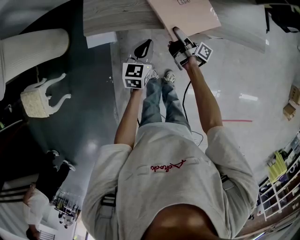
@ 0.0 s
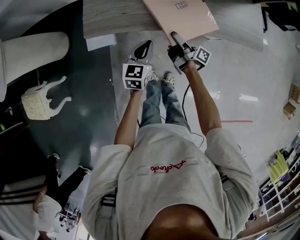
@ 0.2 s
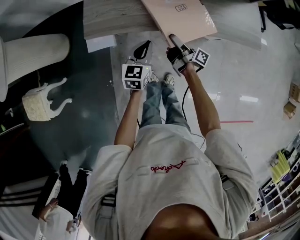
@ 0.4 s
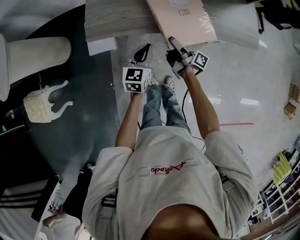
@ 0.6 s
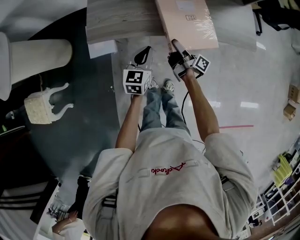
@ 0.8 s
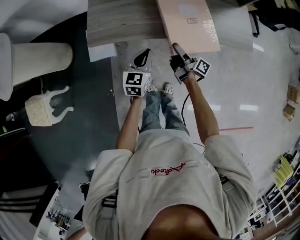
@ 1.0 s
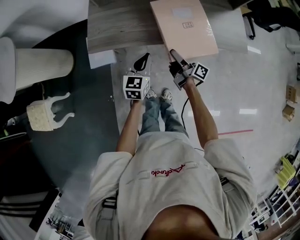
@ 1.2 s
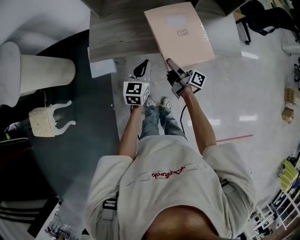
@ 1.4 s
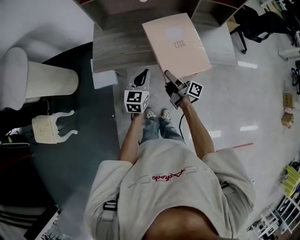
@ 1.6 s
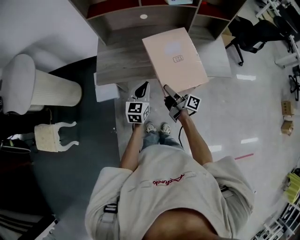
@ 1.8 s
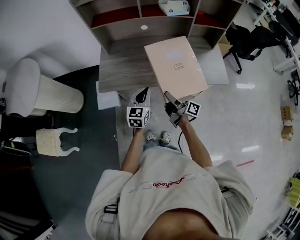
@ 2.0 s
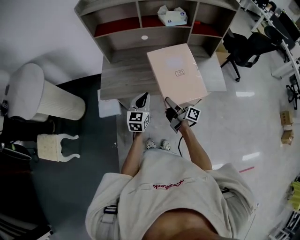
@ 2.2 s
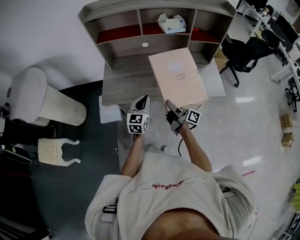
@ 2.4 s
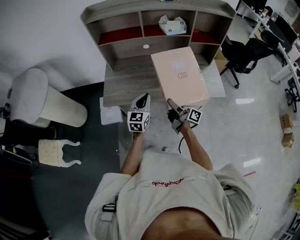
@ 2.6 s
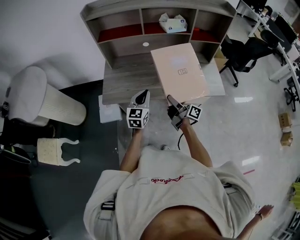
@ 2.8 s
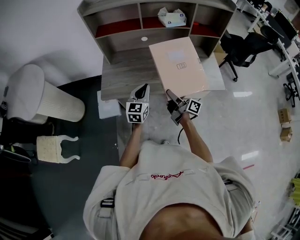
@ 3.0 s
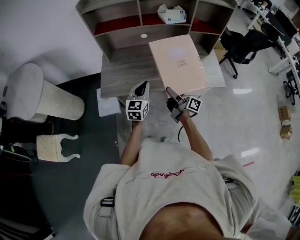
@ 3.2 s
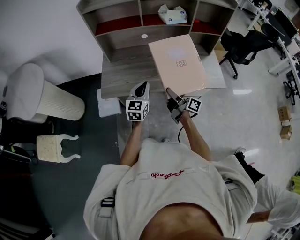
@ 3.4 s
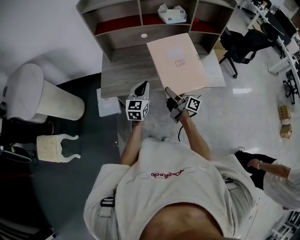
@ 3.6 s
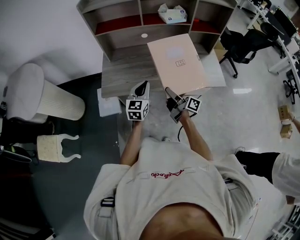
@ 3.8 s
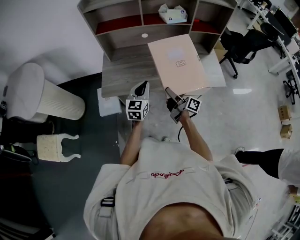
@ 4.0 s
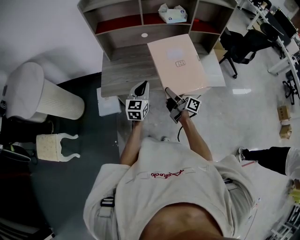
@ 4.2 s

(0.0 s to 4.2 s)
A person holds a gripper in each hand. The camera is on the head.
0.0 s - 1.4 s: The right gripper goes about 15 cm upward and backward. The left gripper heads upward, covering approximately 10 cm.
1.4 s - 2.8 s: The grippers both shift upward by about 10 cm.
2.8 s - 4.2 s: The grippers make only small movements.

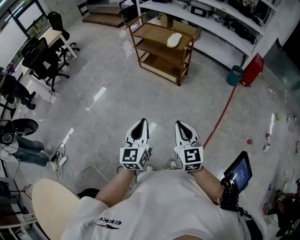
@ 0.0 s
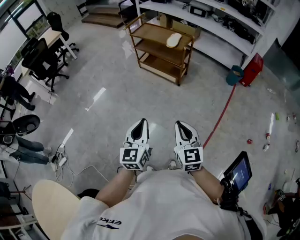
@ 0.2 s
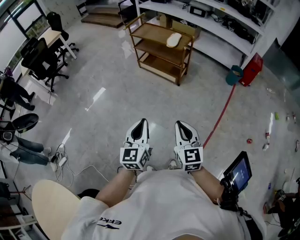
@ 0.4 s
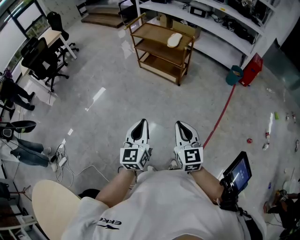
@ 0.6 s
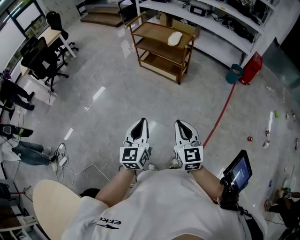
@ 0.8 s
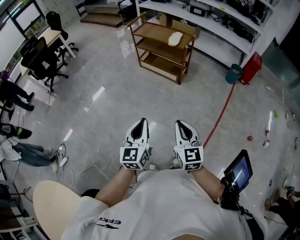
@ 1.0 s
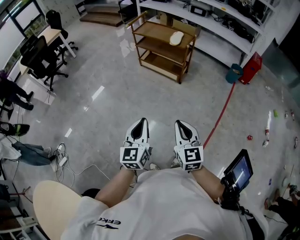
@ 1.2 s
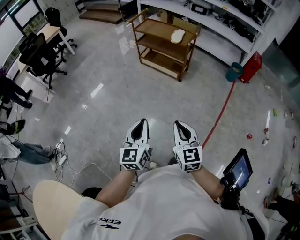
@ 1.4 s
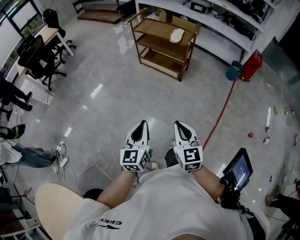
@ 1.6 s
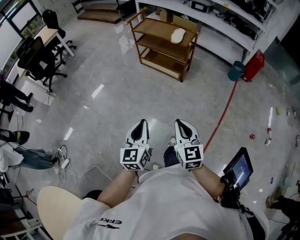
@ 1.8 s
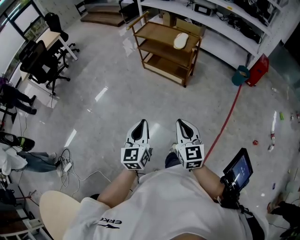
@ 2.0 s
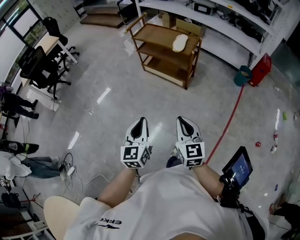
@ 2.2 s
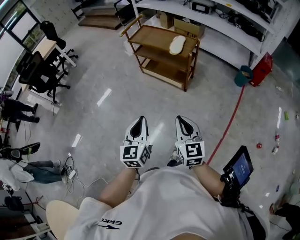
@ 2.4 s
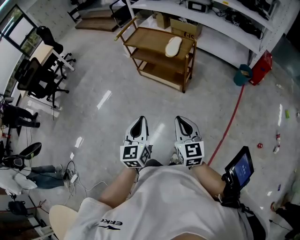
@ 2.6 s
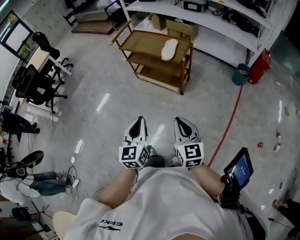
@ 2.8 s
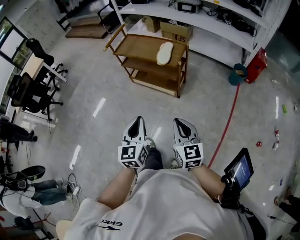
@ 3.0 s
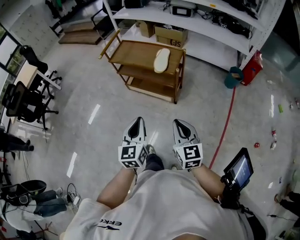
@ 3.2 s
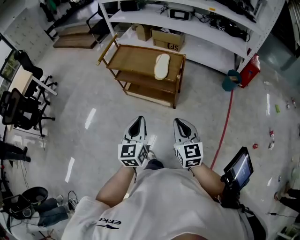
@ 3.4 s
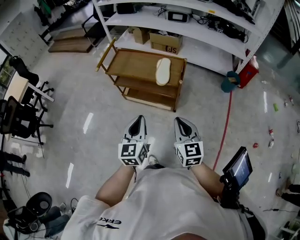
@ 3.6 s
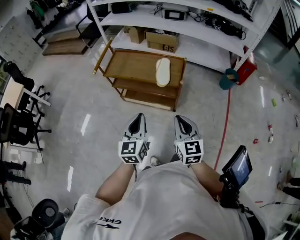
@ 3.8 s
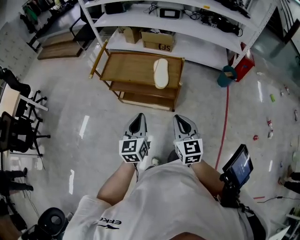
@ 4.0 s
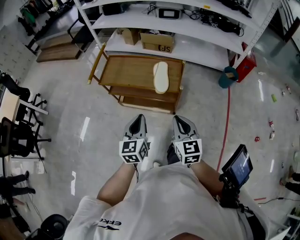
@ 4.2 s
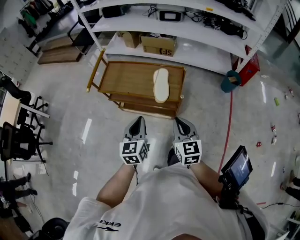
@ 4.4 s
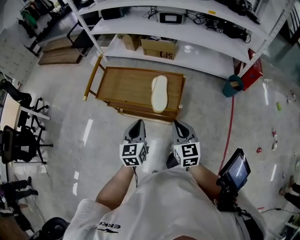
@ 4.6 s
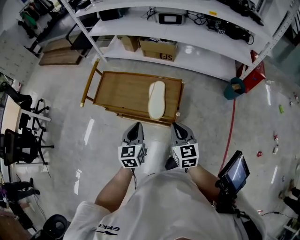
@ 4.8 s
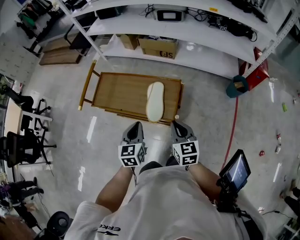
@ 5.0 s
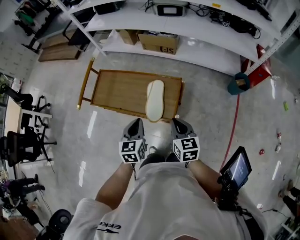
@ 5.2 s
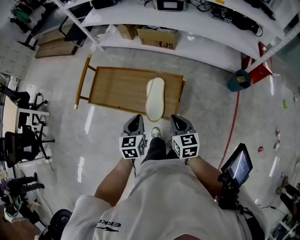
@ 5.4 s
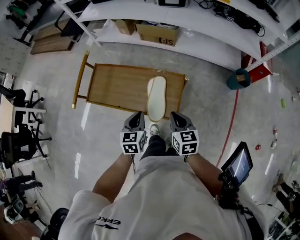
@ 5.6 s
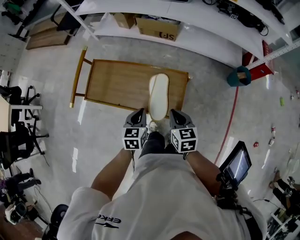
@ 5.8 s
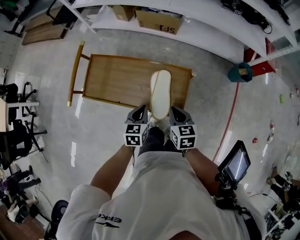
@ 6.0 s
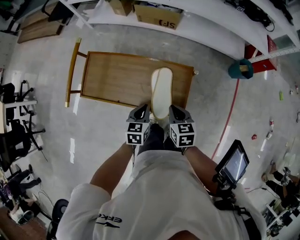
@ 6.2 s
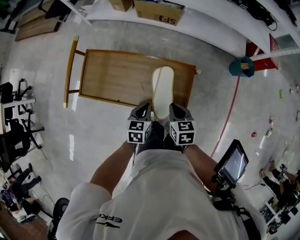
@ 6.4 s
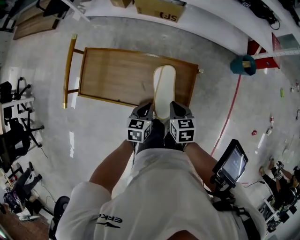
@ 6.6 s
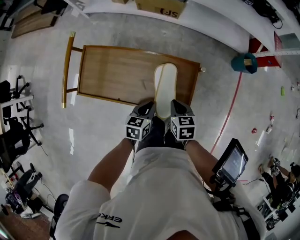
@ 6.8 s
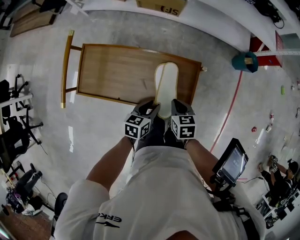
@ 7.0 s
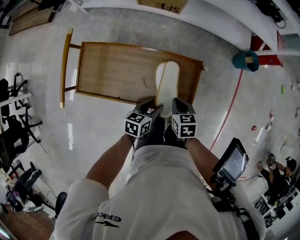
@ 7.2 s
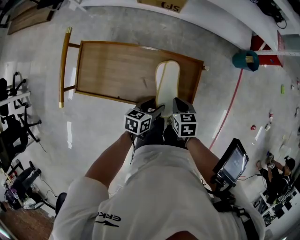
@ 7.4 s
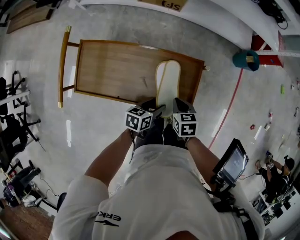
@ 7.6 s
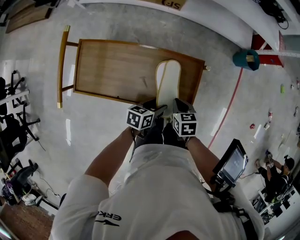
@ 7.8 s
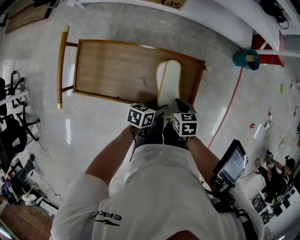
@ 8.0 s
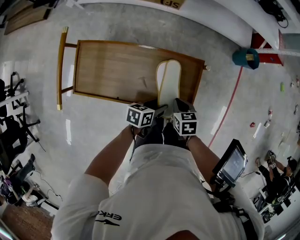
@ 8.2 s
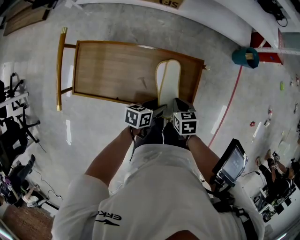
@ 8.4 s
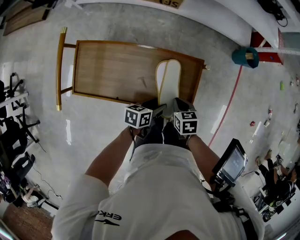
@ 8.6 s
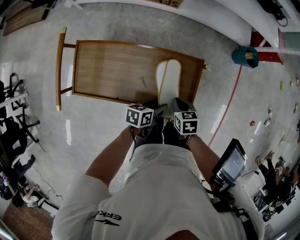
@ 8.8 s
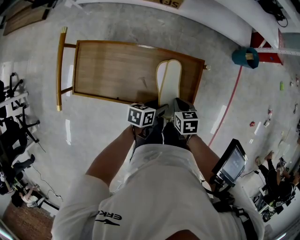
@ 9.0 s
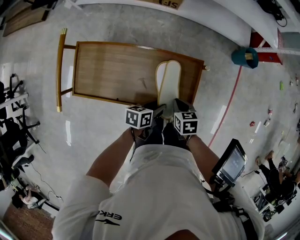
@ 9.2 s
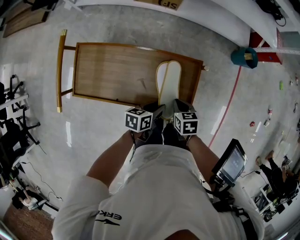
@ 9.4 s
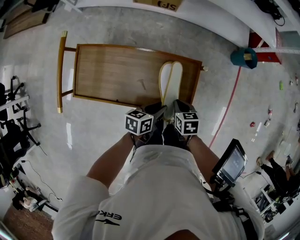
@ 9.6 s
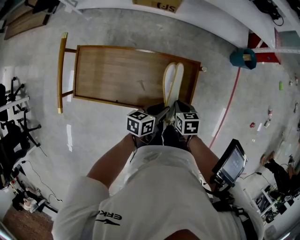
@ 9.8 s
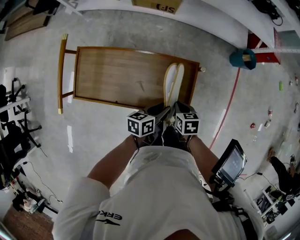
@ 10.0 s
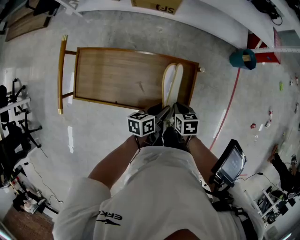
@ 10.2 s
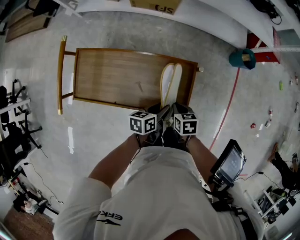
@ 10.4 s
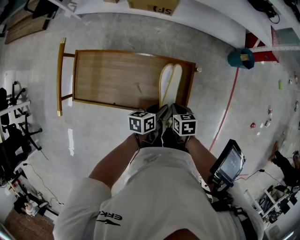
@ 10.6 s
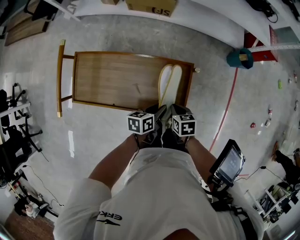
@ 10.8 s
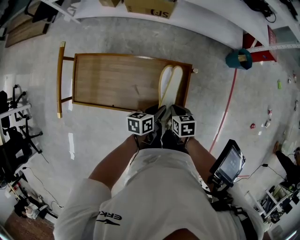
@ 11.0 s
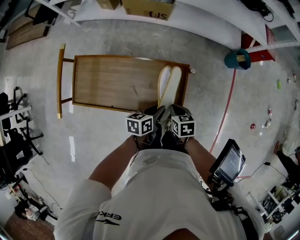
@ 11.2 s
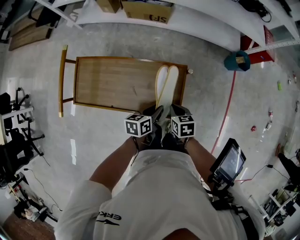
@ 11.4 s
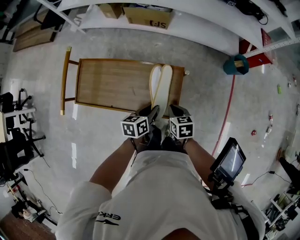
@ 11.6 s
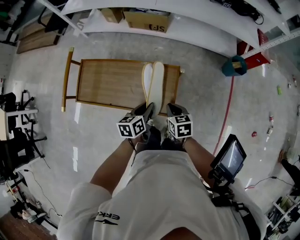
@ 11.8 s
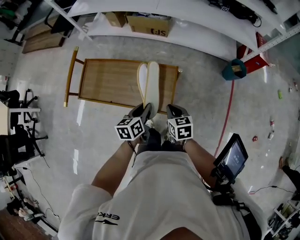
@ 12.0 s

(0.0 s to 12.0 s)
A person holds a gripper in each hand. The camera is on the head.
0.0 s - 1.6 s: Both grippers travel together to the left, approximately 10 cm.
1.6 s - 3.0 s: The grippers both shift forward by about 30 cm.
3.0 s - 4.4 s: The two grippers go about 35 cm forward.
4.4 s - 6.0 s: Both grippers move forward and downward, about 30 cm. The left gripper rotates roughly 20 degrees, while the right gripper swivels approximately 30 degrees.
6.0 s - 7.6 s: Both grippers move downward, approximately 10 cm. The left gripper swivels some 40 degrees, and opens.
7.6 s - 9.0 s: There are only small adjustments of the grippers.
9.0 s - 10.4 s: The left gripper closes.
10.4 s - 12.0 s: The two grippers go some 10 cm upward. The left gripper swivels about 30 degrees. The right gripper changes its angle by about 20 degrees.

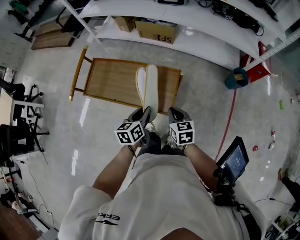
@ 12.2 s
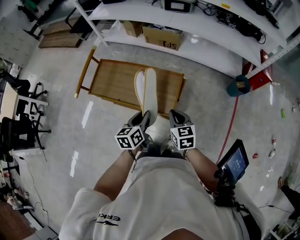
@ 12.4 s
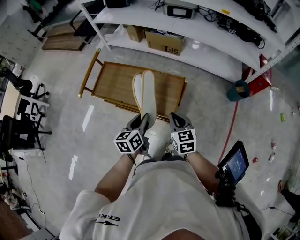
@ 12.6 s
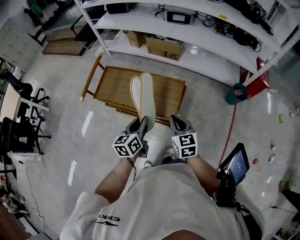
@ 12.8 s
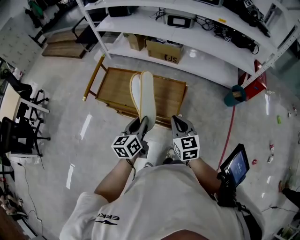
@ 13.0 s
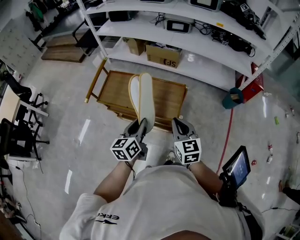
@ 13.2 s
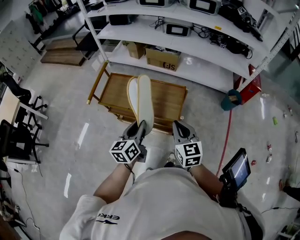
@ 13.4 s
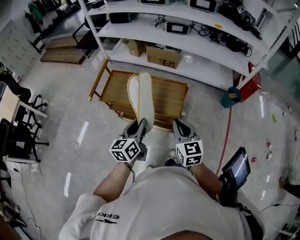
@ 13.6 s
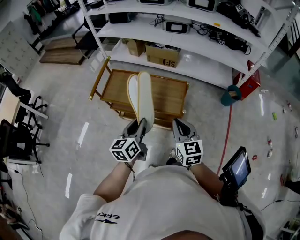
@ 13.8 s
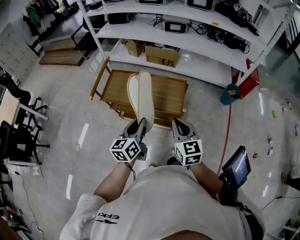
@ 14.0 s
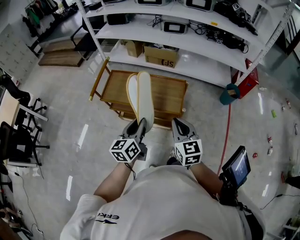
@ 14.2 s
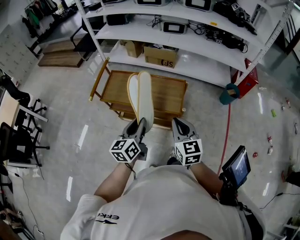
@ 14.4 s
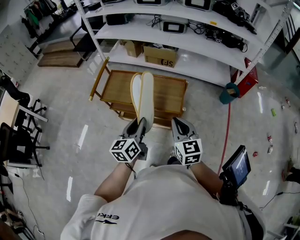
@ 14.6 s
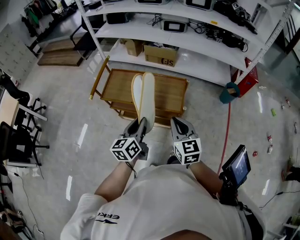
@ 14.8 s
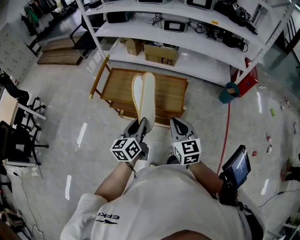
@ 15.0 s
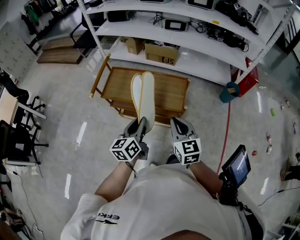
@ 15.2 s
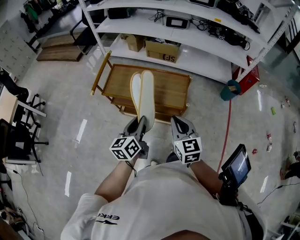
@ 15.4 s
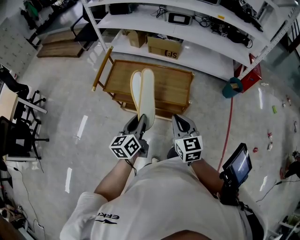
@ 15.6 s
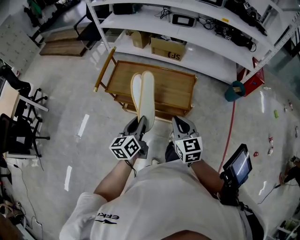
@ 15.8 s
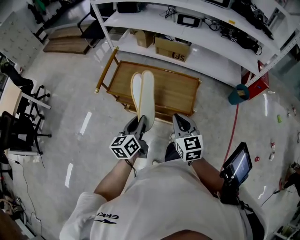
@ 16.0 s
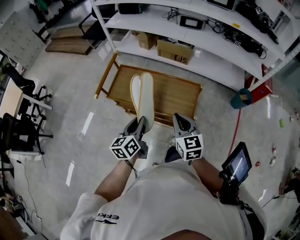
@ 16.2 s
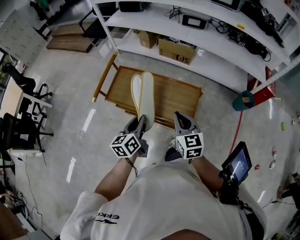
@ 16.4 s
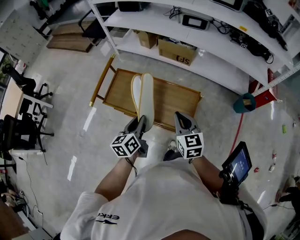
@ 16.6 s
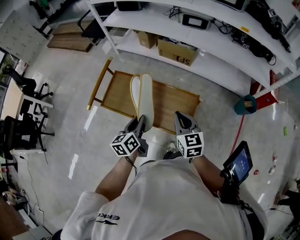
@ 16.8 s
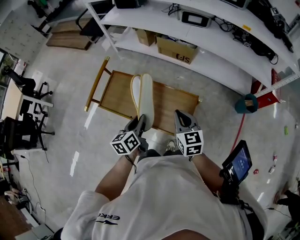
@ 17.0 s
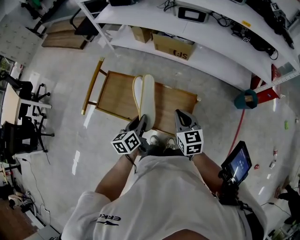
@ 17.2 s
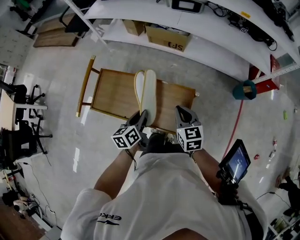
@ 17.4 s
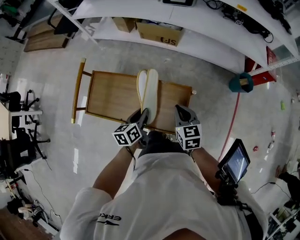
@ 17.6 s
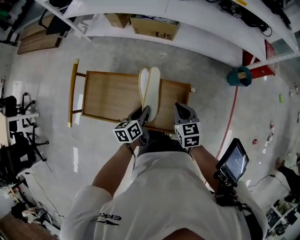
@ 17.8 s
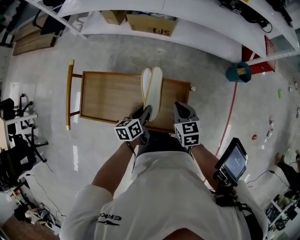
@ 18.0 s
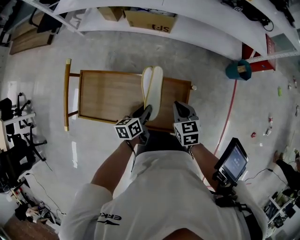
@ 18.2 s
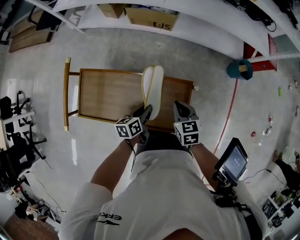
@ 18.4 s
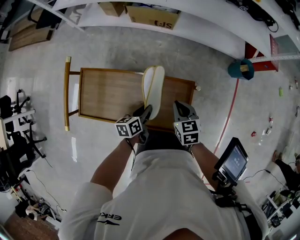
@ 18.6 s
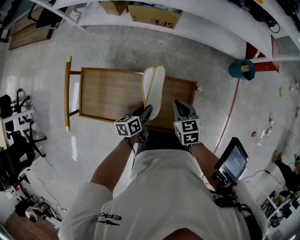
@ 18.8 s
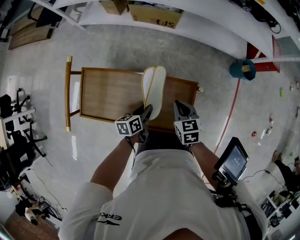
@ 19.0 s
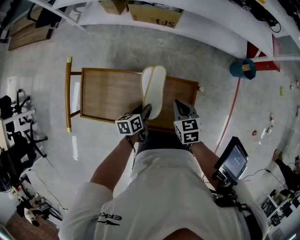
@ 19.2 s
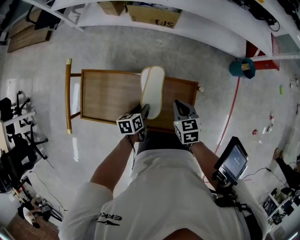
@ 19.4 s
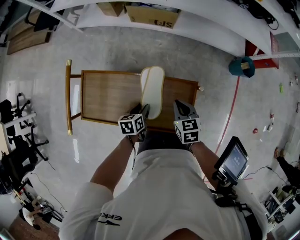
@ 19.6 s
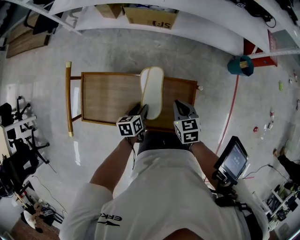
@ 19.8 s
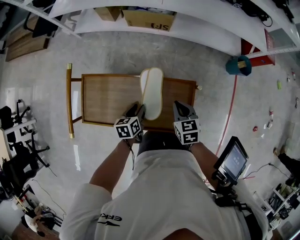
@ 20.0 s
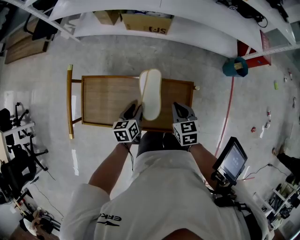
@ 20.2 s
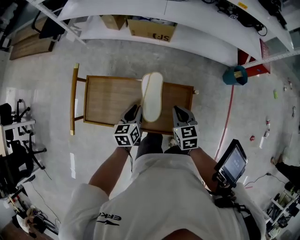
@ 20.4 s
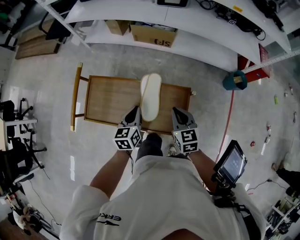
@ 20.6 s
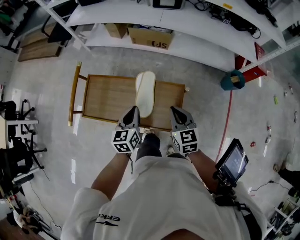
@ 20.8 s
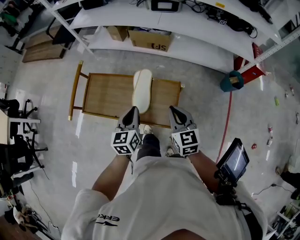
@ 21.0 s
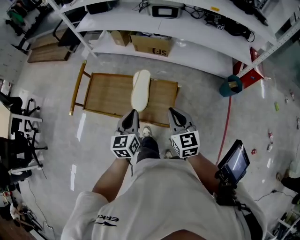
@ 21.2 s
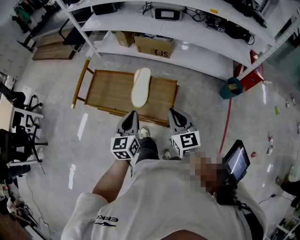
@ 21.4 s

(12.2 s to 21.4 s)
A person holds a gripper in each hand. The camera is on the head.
12.2 s - 13.8 s: The left gripper travels backward, to the left and upward by some 25 cm, while the right gripper is displaced upward, backward and to the left by some 25 cm, and changes its angle by about 20 degrees.
13.8 s - 15.2 s: The grippers move only a little.
15.2 s - 16.8 s: The two grippers go roughly 20 cm forward.
16.8 s - 18.4 s: The left gripper travels downward, forward and to the right by some 20 cm, and changes its angle by some 30 degrees, while the right gripper travels downward and forward by about 20 cm, and changes its angle by about 20 degrees.
18.4 s - 19.8 s: The left gripper heads to the left, covering some 5 cm.
19.8 s - 21.4 s: Both grippers travel together upward and backward, some 30 cm. The right gripper changes its angle by roughly 30 degrees. The left gripper tilts its fingers roughly 30 degrees upward, and closes.
